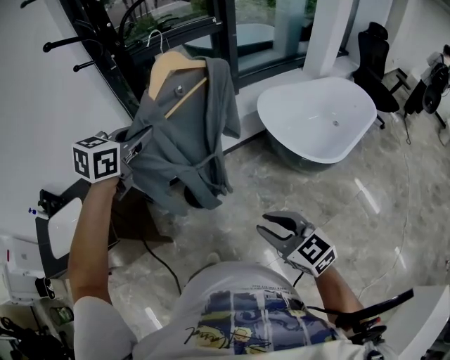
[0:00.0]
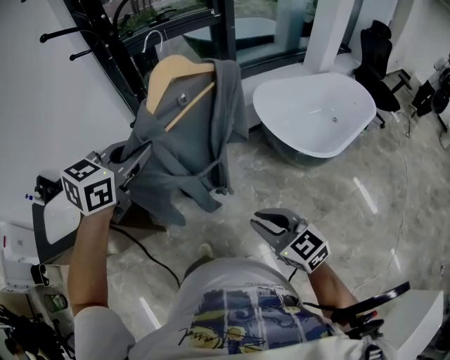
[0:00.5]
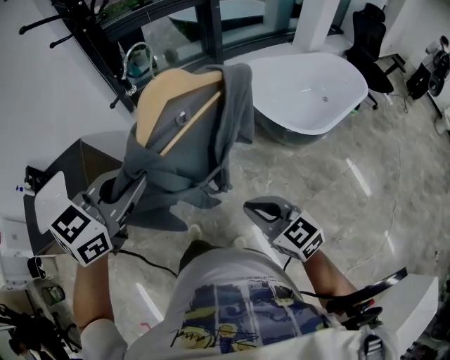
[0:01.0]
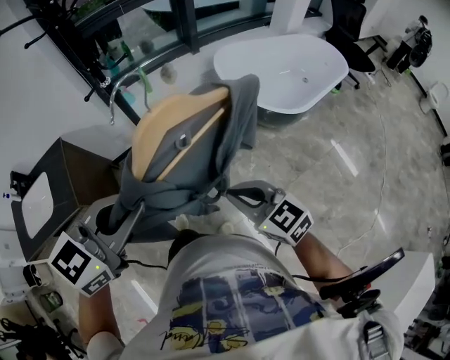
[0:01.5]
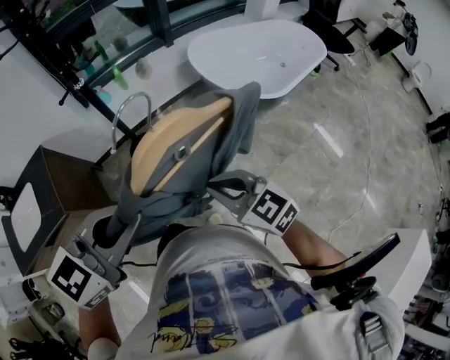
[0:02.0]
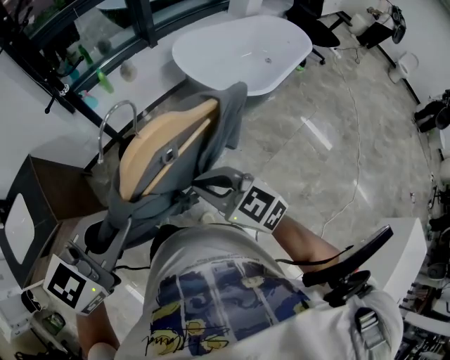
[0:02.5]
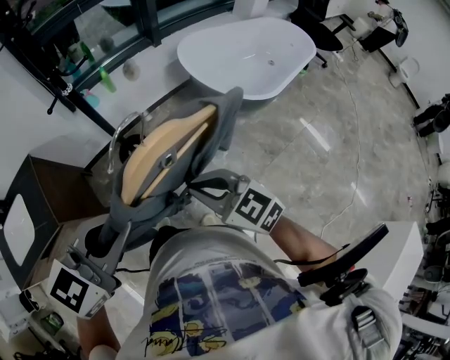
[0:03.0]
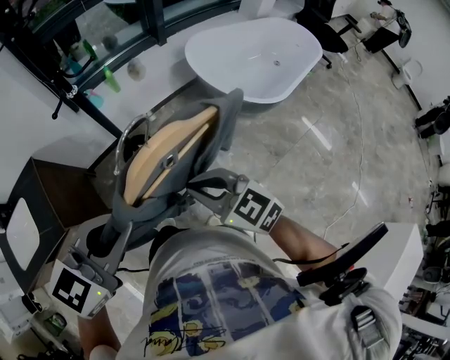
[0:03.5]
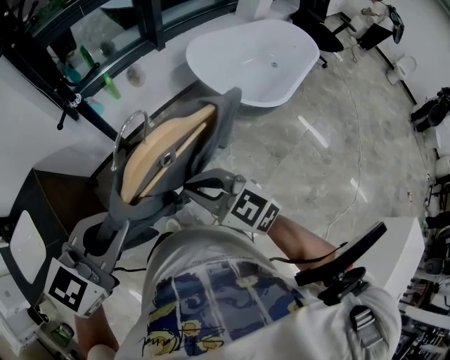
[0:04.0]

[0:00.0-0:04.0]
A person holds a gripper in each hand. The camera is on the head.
0:00.0 to 0:02.0: The left gripper heads backward and to the right, covering about 35 cm. The right gripper goes approximately 10 cm backward and to the right, and closes up.
0:02.0 to 0:04.0: The left gripper heads forward and to the left, covering about 15 cm. Meanwhile the right gripper shifts roughly 15 cm to the left and forward.

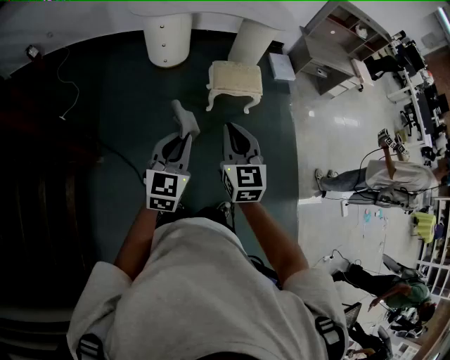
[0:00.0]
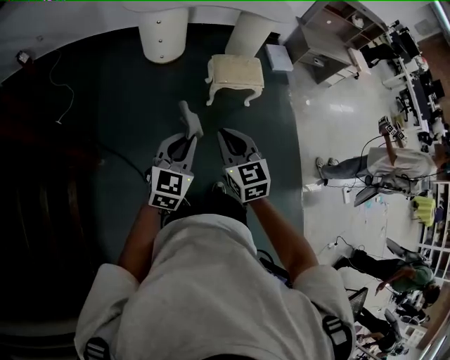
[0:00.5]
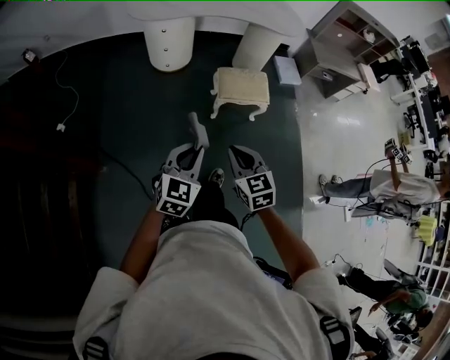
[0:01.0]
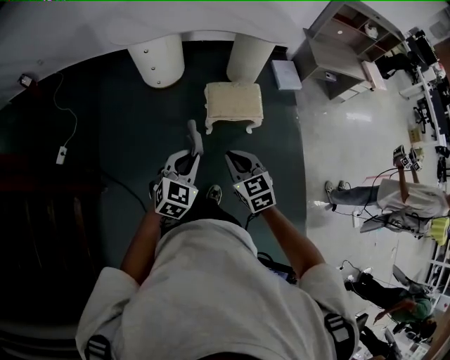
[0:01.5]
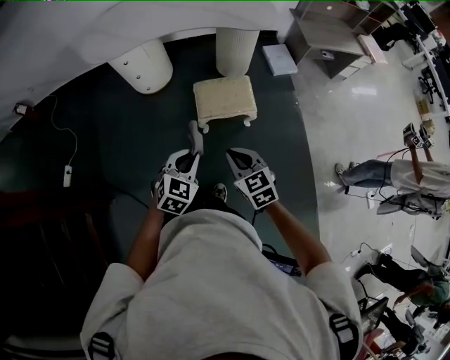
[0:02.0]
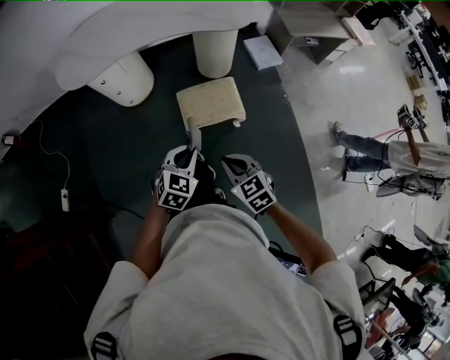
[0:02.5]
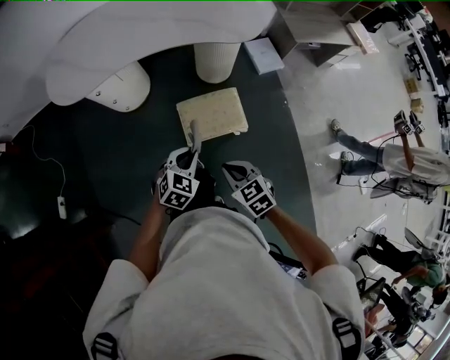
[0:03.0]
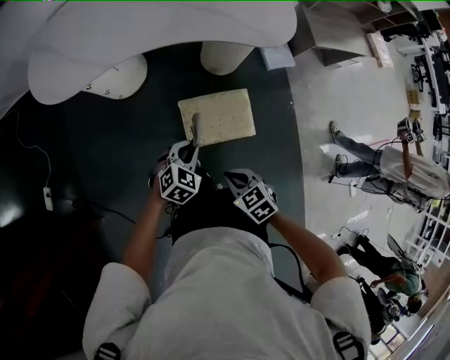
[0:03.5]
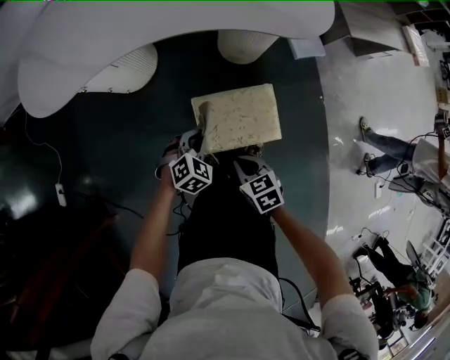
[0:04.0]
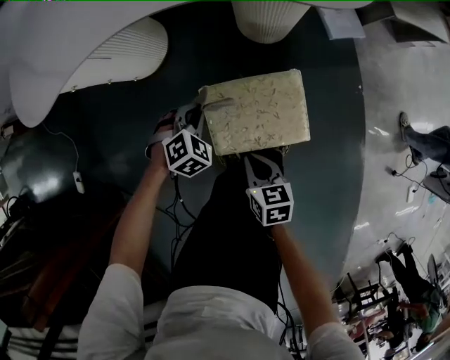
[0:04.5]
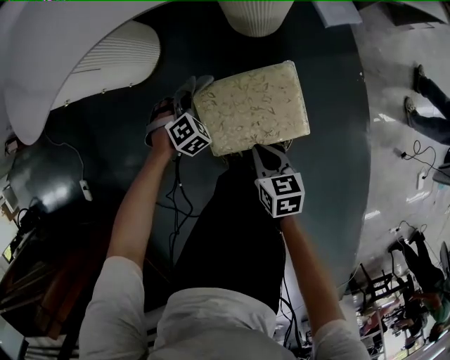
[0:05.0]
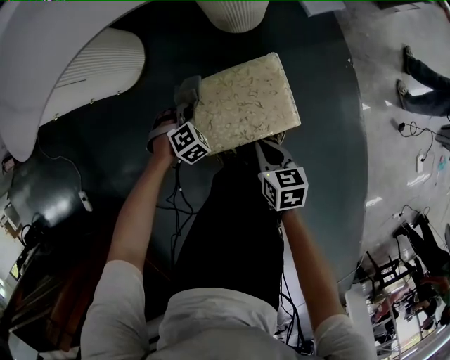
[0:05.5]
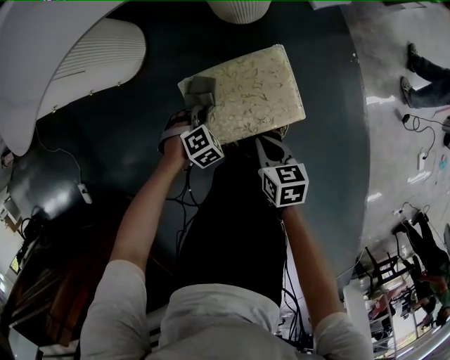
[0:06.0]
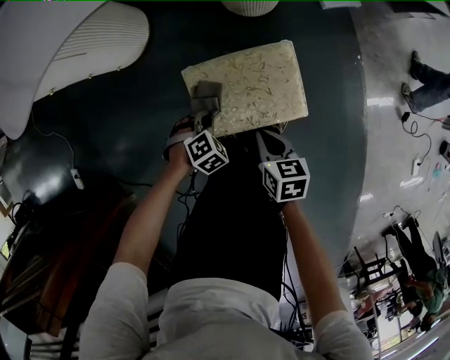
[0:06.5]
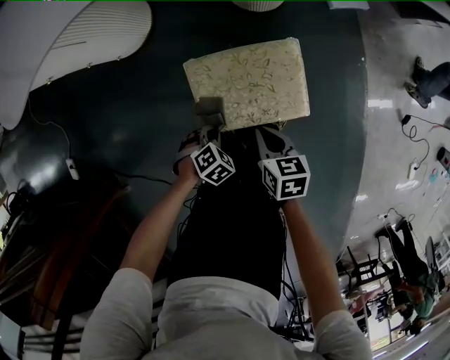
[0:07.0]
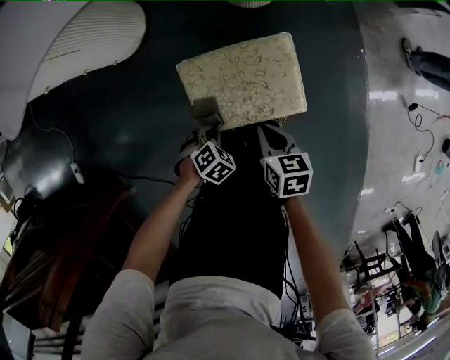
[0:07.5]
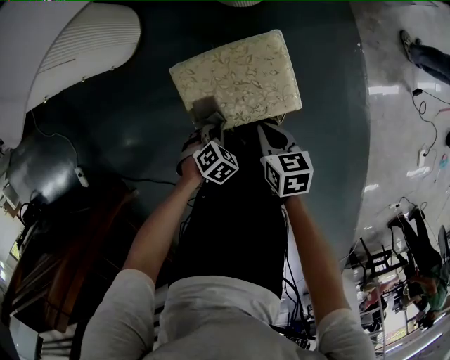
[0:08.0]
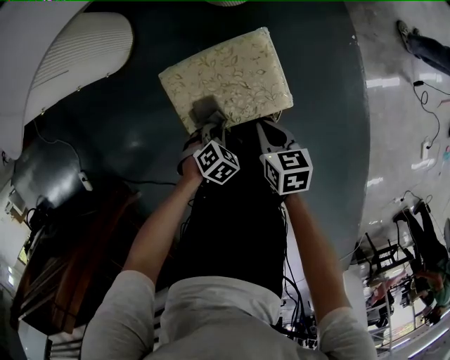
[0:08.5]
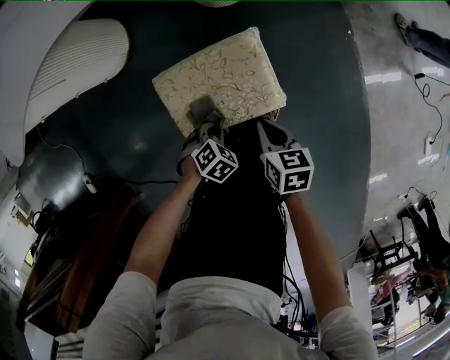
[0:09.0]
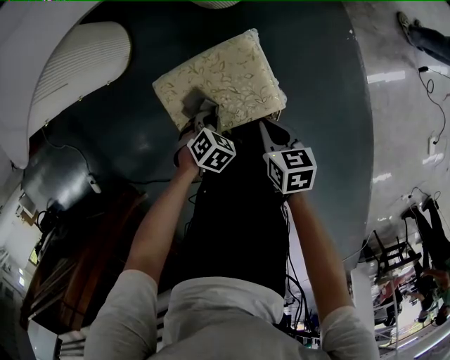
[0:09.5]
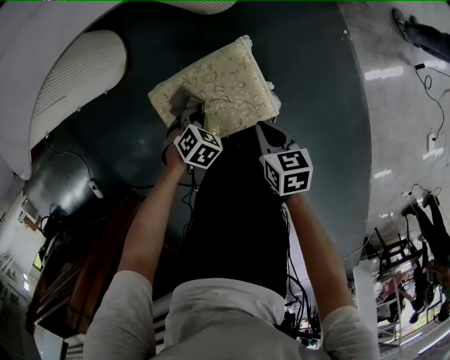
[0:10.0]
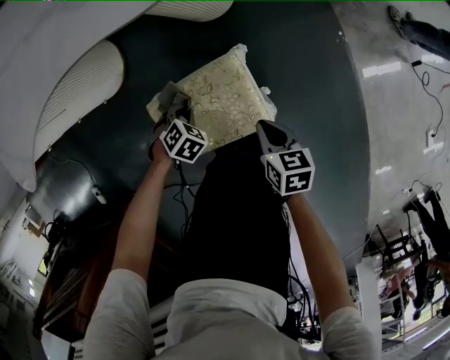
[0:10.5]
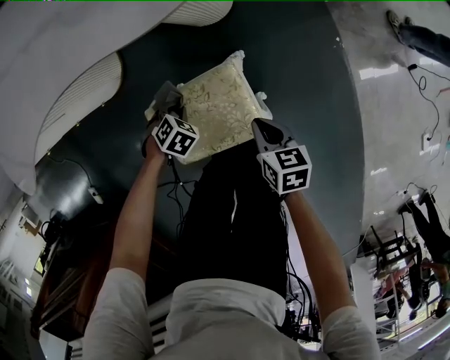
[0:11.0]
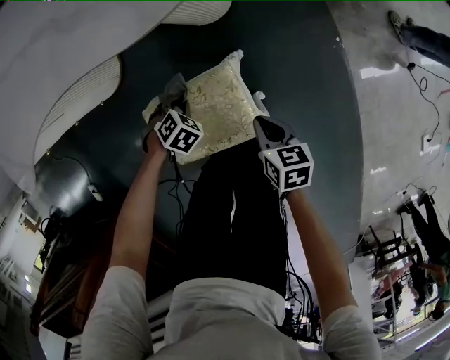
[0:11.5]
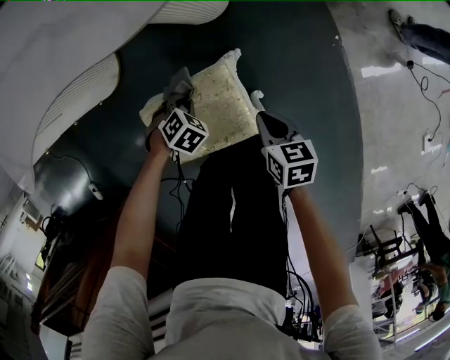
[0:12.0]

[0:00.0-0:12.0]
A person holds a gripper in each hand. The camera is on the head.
0:00.0 to 0:02.0: The left gripper shifts about 35 cm forward, to the right and downward, and turns by about 30 degrees; the right gripper heads forward, downward and to the right, covering approximately 30 cm, and rotates roughly 20 degrees.
0:02.0 to 0:04.0: Both grippers move forward and downward, some 40 cm. The left gripper rotates about 20 degrees, while the right gripper changes its angle by roughly 30 degrees.
0:04.0 to 0:06.0: The left gripper goes roughly 20 cm downward, and changes its angle by approximately 30 degrees. The right gripper travels downward by some 15 cm, and changes its angle by about 30 degrees.
0:06.0 to 0:08.0: The left gripper moves some 10 cm, and changes its angle by about 20 degrees.
0:08.0 to 0:10.0: The left gripper shifts by approximately 10 cm. The right gripper ends up some 10 cm from where it was.
0:10.0 to 0:12.0: The right gripper changes place by approximately 10 cm. The left gripper shifts by about 10 cm.

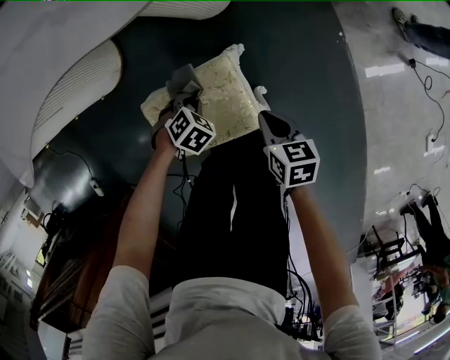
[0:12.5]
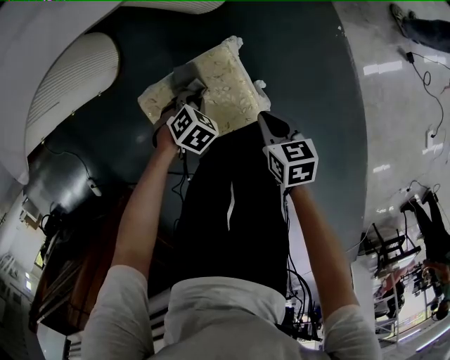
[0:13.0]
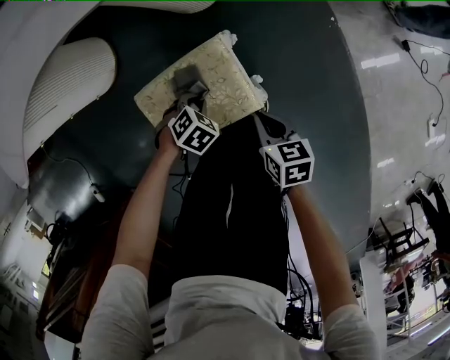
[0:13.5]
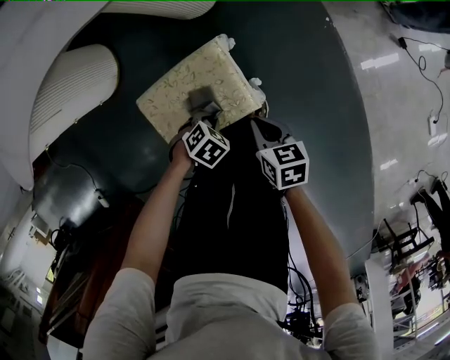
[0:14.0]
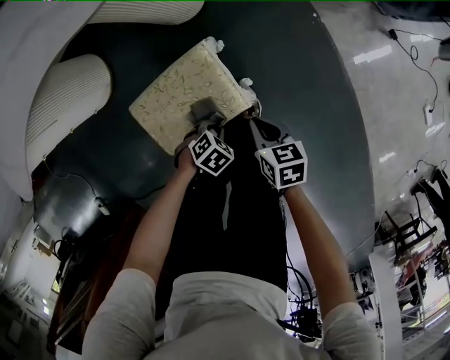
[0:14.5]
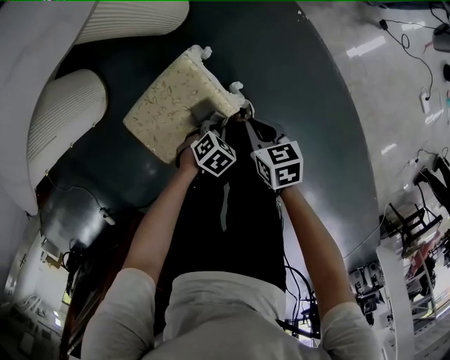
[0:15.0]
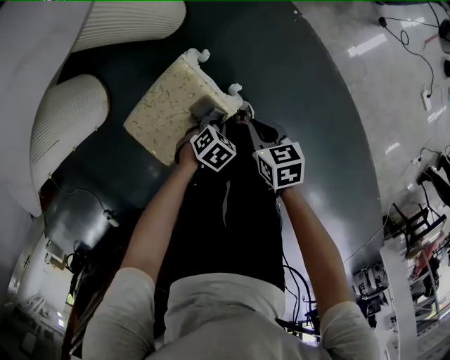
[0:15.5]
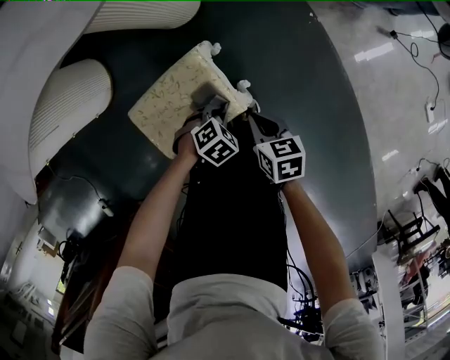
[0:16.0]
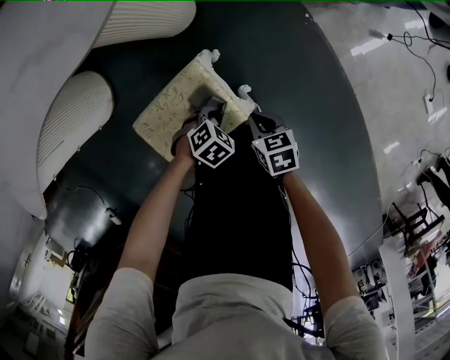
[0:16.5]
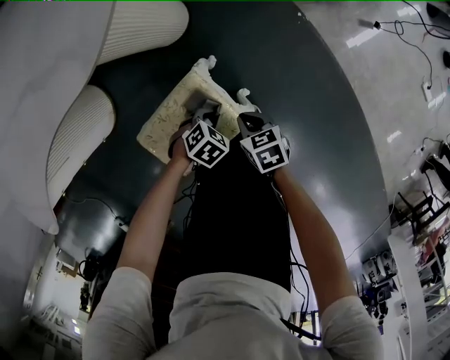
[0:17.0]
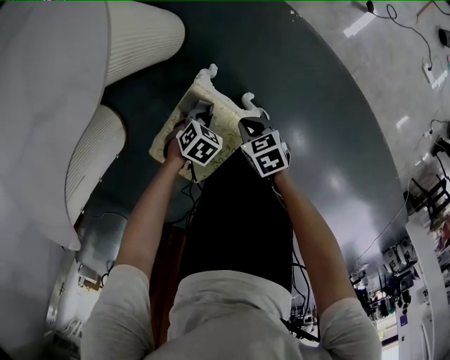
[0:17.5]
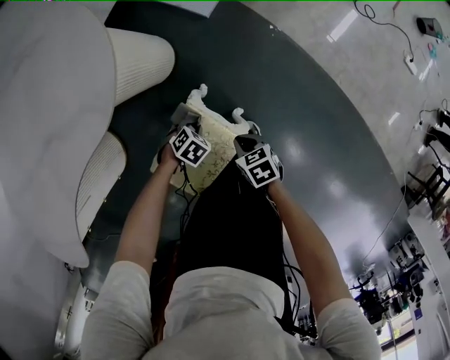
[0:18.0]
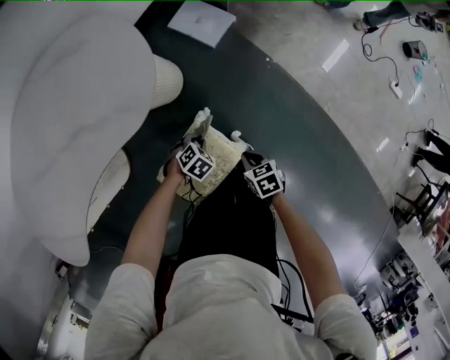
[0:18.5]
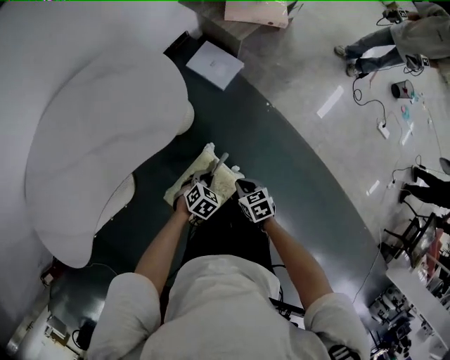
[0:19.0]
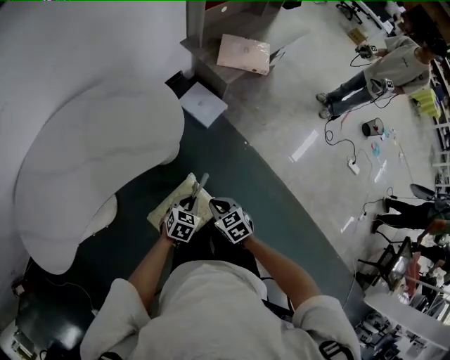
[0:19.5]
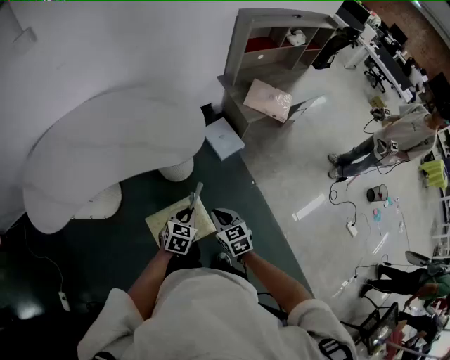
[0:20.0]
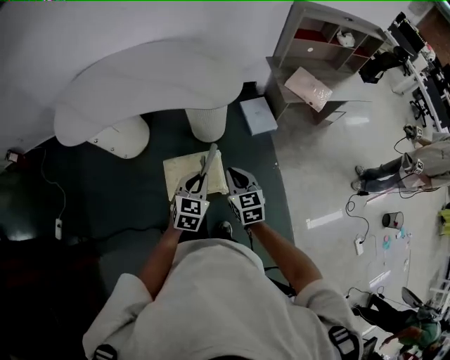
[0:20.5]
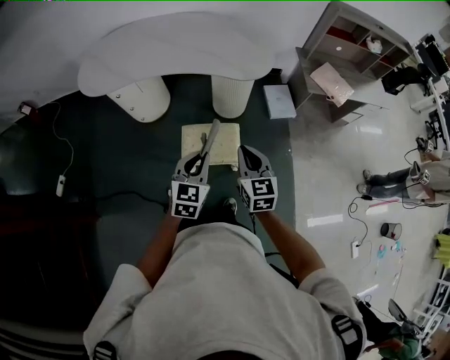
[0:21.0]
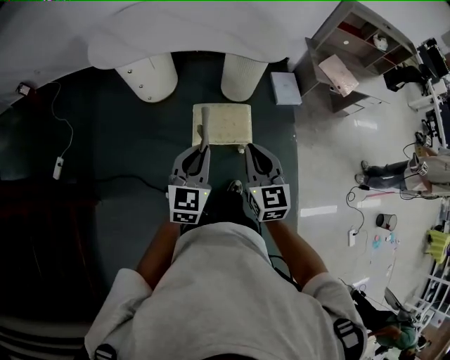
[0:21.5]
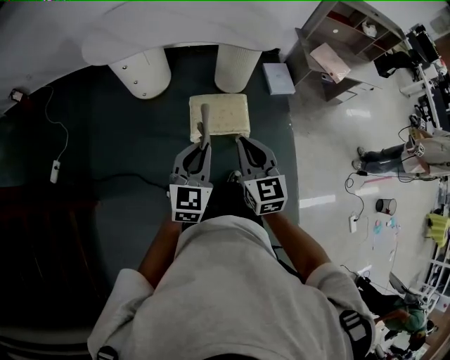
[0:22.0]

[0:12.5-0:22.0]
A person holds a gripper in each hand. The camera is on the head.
0:12.5 to 0:14.5: The right gripper changes place by approximately 10 cm. Meanwhile the left gripper moves about 20 cm.
0:14.5 to 0:16.5: The left gripper ends up approximately 10 cm from where it was, while the right gripper moves roughly 5 cm.
0:16.5 to 0:18.0: The left gripper ends up some 10 cm from where it was.
0:18.0 to 0:20.0: The grippers both shift upward by about 40 cm. The right gripper swivels roughly 40 degrees, while the left gripper tips its fingers upward by approximately 30 degrees.
0:20.0 to 0:22.0: Both grippers move backward, upward and to the left, roughly 40 cm. The right gripper swivels roughly 30 degrees. Meanwhile the left gripper rotates about 40 degrees.

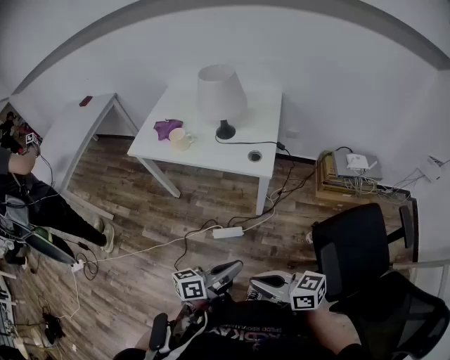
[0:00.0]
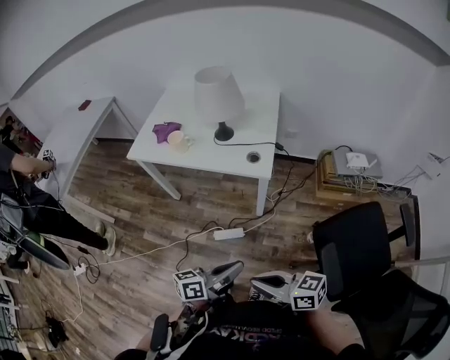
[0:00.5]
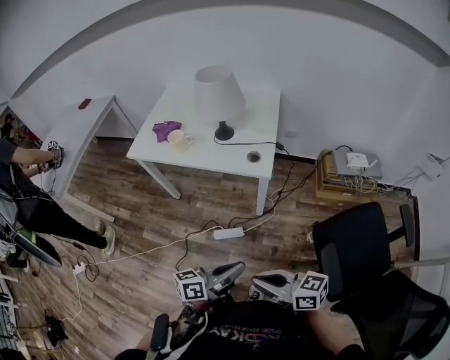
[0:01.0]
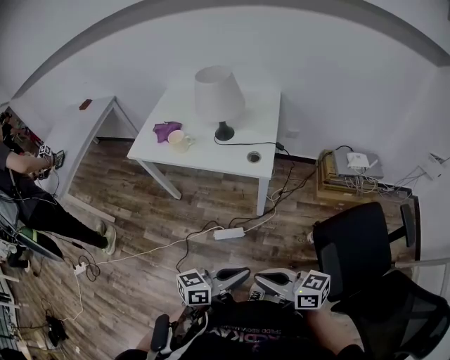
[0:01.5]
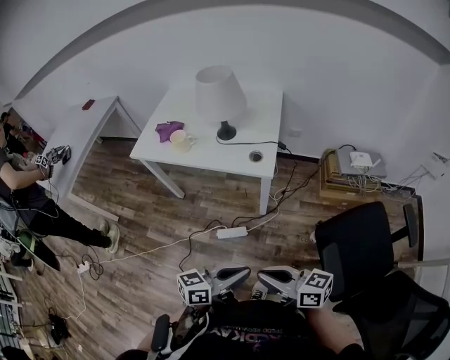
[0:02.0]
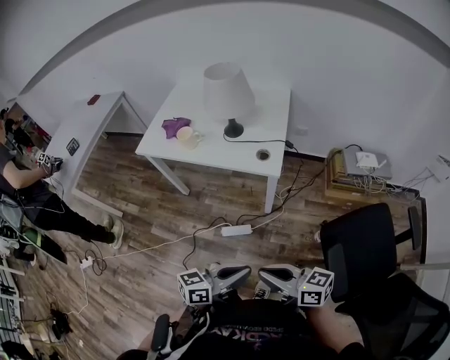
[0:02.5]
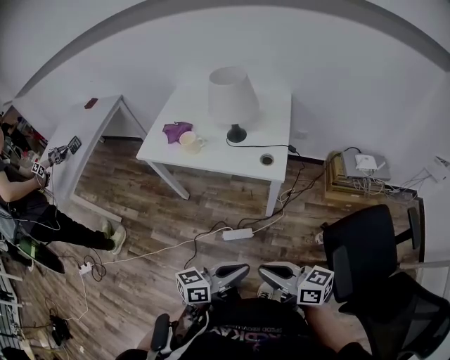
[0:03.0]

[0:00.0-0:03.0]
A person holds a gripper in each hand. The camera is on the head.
0:00.0 to 0:01.5: The grippers make only small movements.
0:01.5 to 0:03.0: The left gripper changes place by roughly 5 cm, while the right gripper moves approximately 5 cm.
